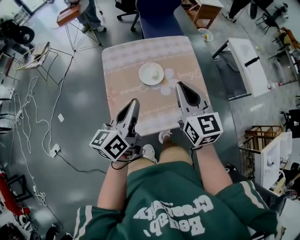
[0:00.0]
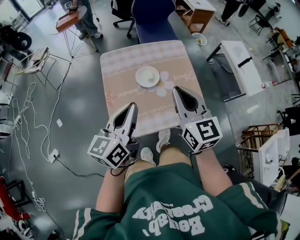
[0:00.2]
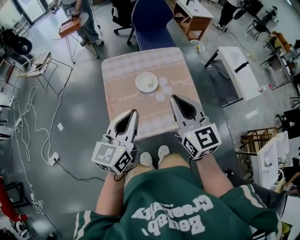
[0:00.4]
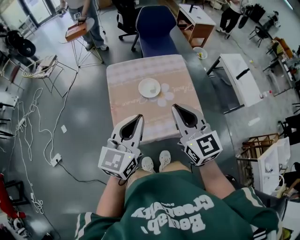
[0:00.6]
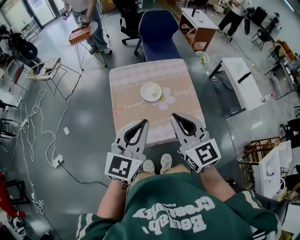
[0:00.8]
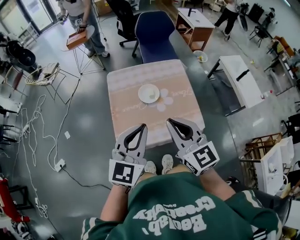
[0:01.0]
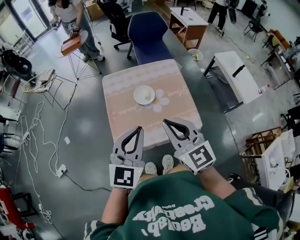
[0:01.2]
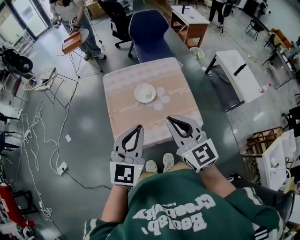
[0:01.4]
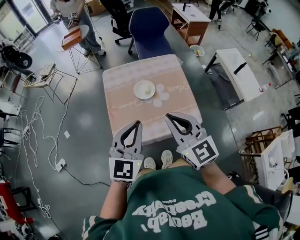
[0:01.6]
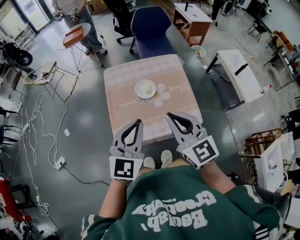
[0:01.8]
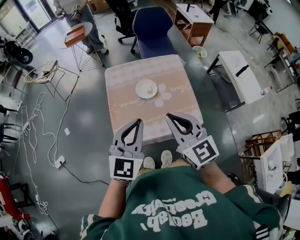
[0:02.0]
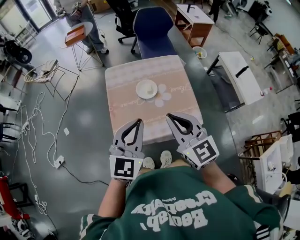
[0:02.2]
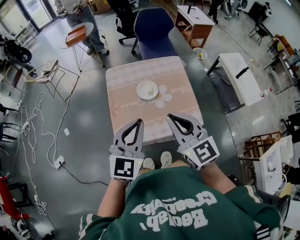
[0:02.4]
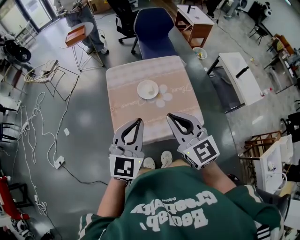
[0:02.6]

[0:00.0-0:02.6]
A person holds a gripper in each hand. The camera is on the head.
0:00.0 to 0:01.2: The right gripper changes place by about 15 cm.

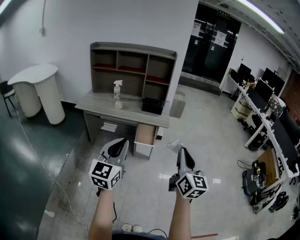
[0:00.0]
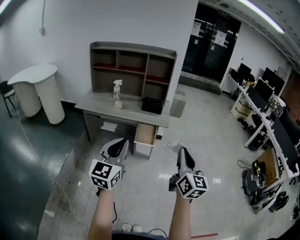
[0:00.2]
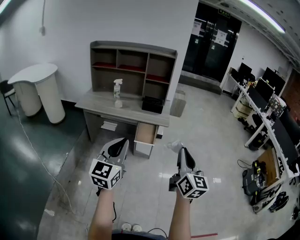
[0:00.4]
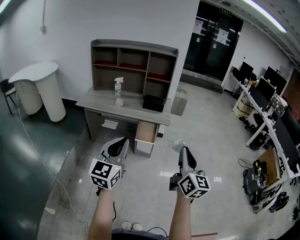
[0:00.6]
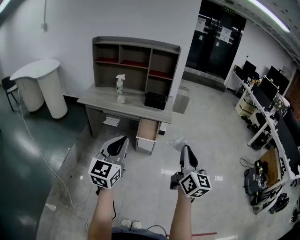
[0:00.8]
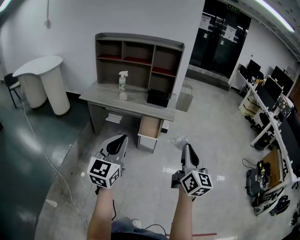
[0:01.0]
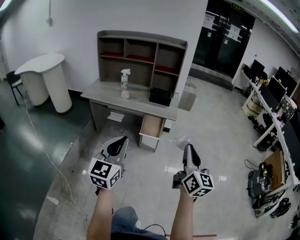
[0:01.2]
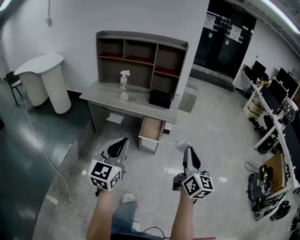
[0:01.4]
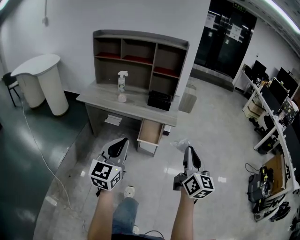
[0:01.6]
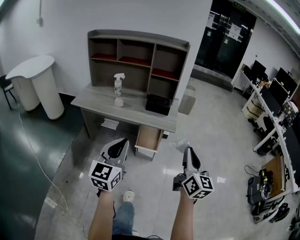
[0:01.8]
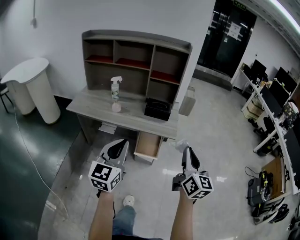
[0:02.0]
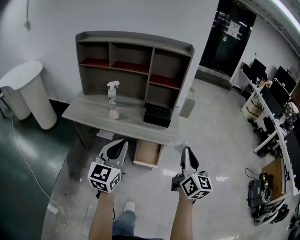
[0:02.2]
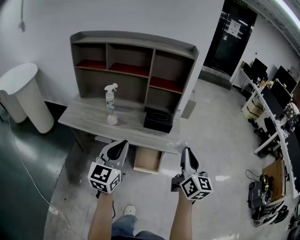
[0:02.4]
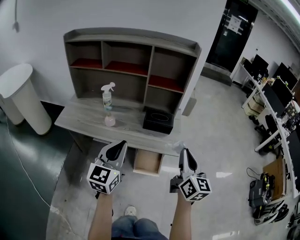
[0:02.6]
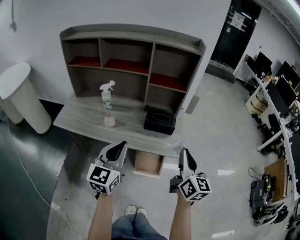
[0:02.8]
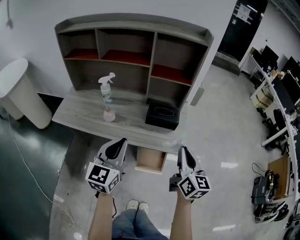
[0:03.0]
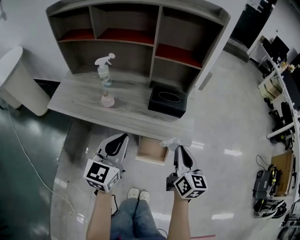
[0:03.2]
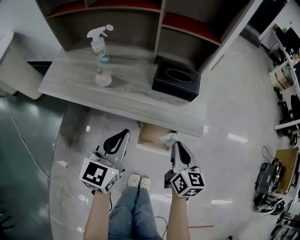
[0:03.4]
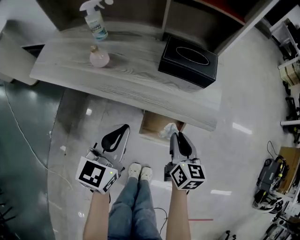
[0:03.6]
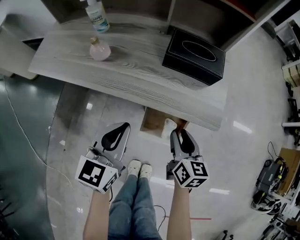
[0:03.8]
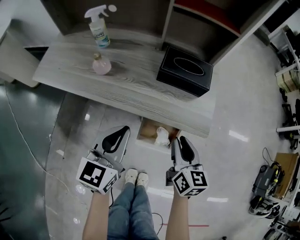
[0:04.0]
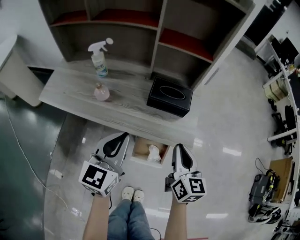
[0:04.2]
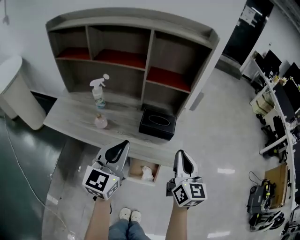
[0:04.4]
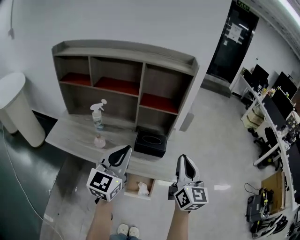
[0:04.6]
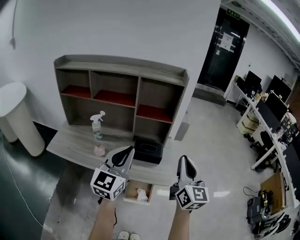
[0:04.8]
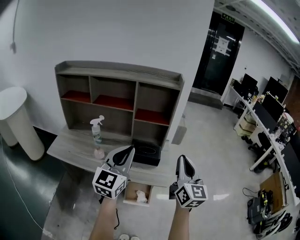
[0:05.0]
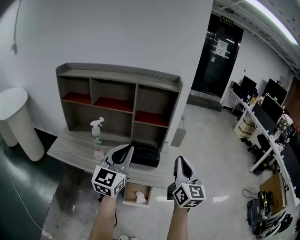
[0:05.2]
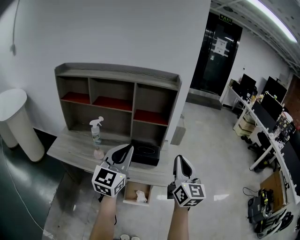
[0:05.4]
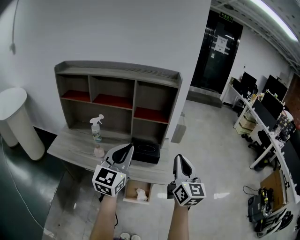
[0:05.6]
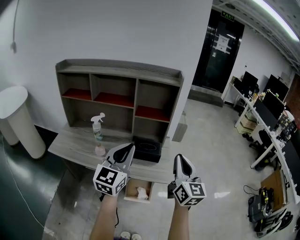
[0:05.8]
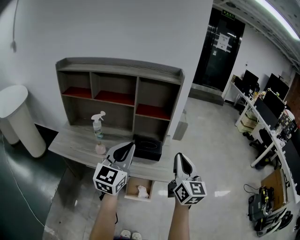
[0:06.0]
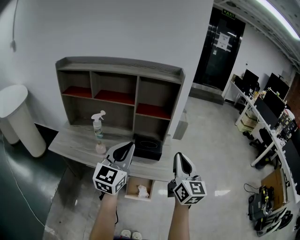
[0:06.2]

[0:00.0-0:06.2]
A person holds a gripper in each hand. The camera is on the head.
0:00.0 to 0:01.6: The left gripper is displaced forward and downward by some 10 cm, while the right gripper is displaced forward by approximately 10 cm.
0:01.6 to 0:03.2: The left gripper heads forward, covering some 40 cm; the right gripper travels forward and downward by approximately 40 cm, and turns by approximately 20 degrees.
0:03.2 to 0:04.6: Both grippers travel together upward, some 15 cm. The right gripper turns by some 20 degrees, and opens, then closes again.
0:04.6 to 0:06.2: The right gripper changes place by approximately 5 cm. The left gripper moves some 5 cm.

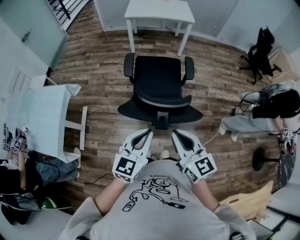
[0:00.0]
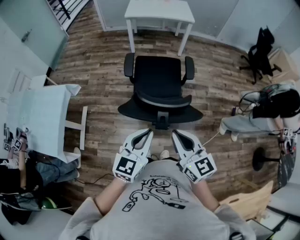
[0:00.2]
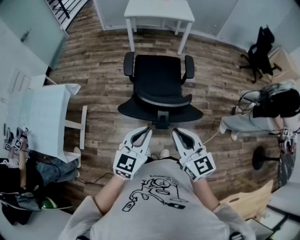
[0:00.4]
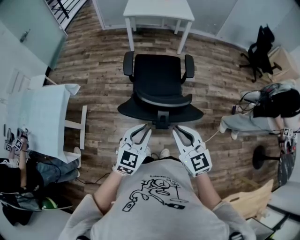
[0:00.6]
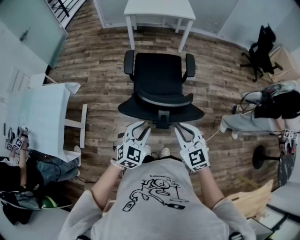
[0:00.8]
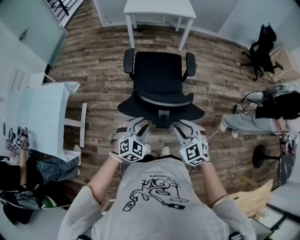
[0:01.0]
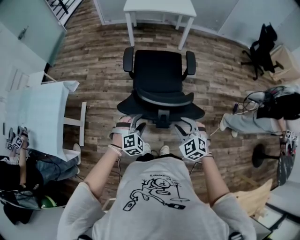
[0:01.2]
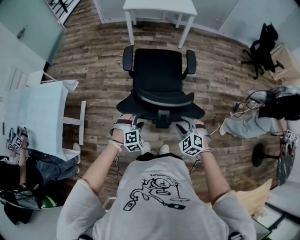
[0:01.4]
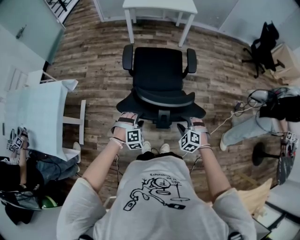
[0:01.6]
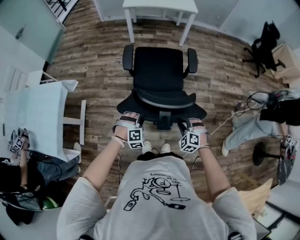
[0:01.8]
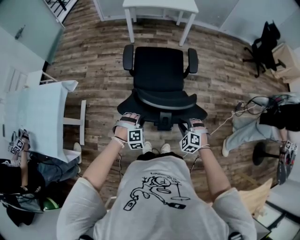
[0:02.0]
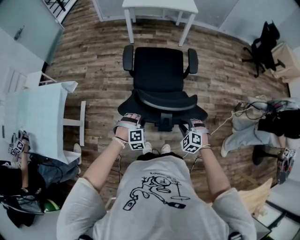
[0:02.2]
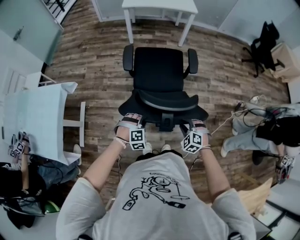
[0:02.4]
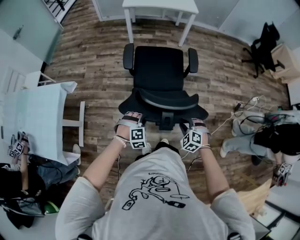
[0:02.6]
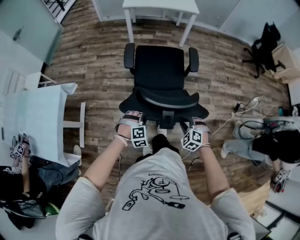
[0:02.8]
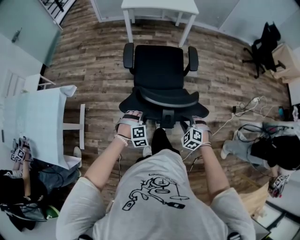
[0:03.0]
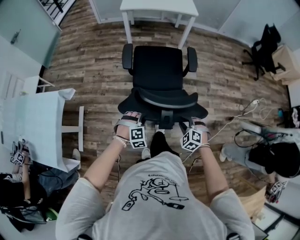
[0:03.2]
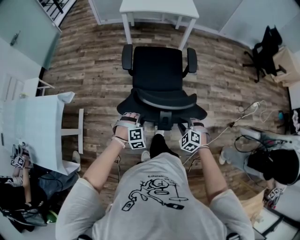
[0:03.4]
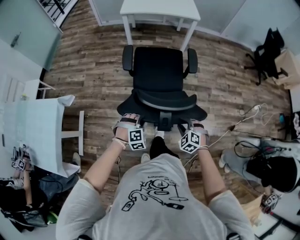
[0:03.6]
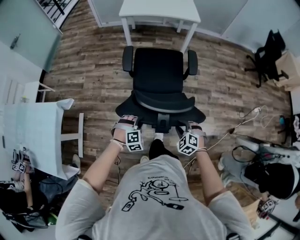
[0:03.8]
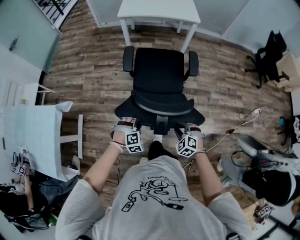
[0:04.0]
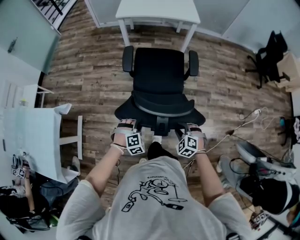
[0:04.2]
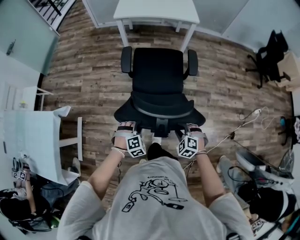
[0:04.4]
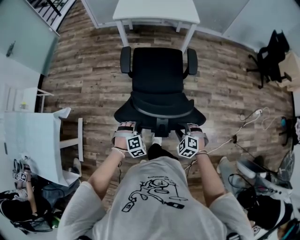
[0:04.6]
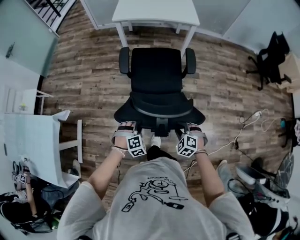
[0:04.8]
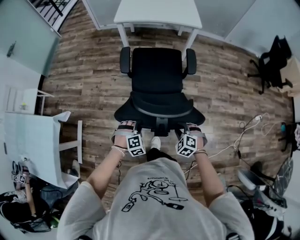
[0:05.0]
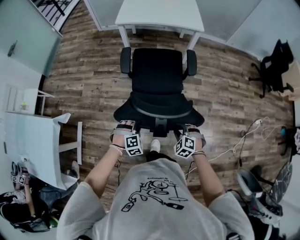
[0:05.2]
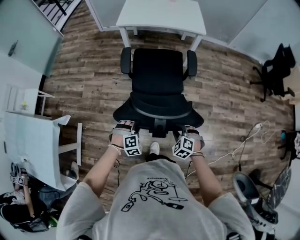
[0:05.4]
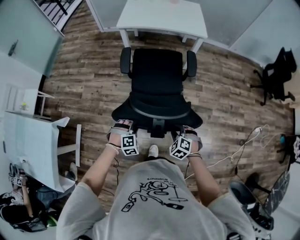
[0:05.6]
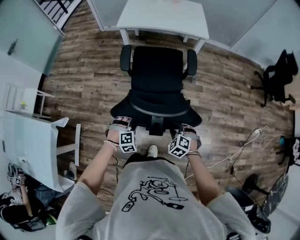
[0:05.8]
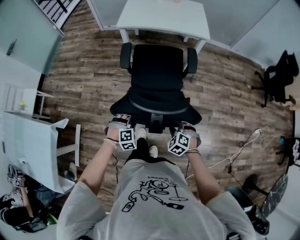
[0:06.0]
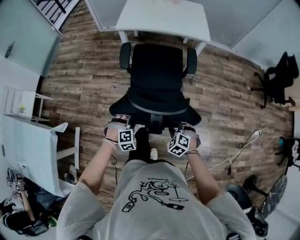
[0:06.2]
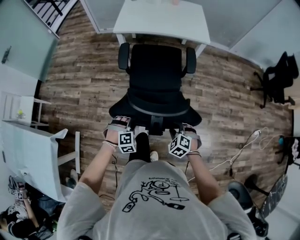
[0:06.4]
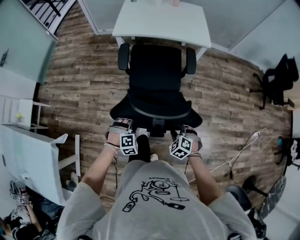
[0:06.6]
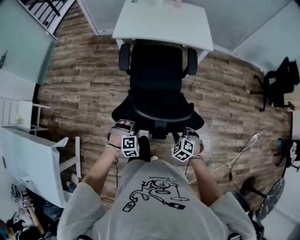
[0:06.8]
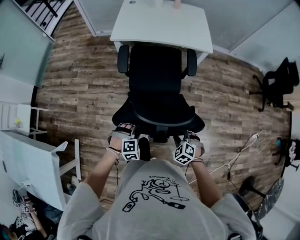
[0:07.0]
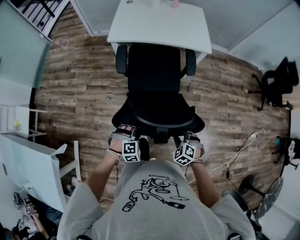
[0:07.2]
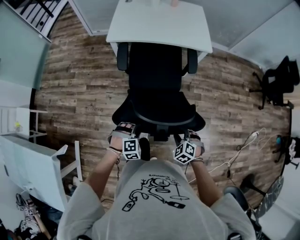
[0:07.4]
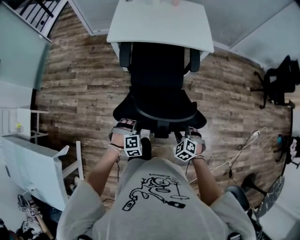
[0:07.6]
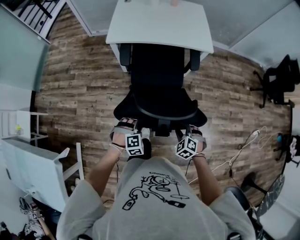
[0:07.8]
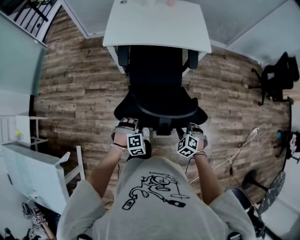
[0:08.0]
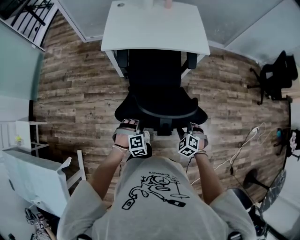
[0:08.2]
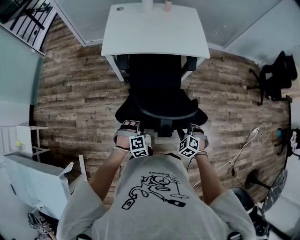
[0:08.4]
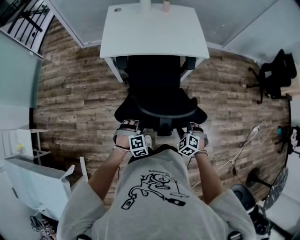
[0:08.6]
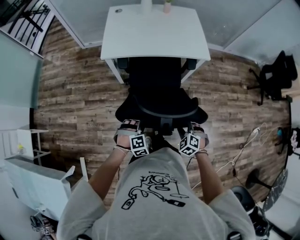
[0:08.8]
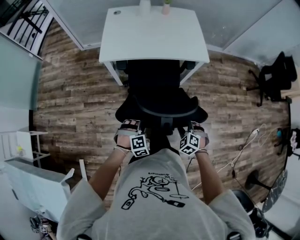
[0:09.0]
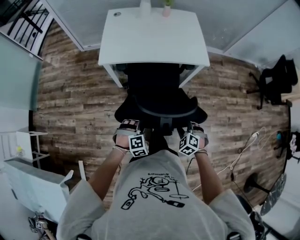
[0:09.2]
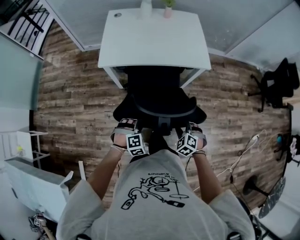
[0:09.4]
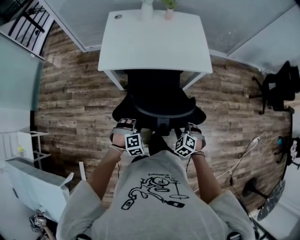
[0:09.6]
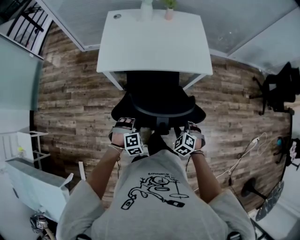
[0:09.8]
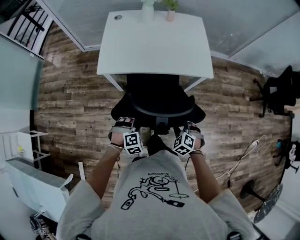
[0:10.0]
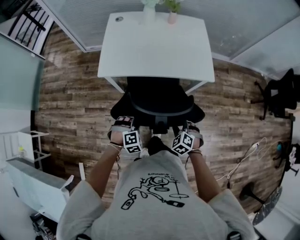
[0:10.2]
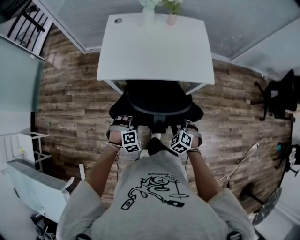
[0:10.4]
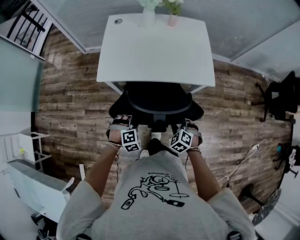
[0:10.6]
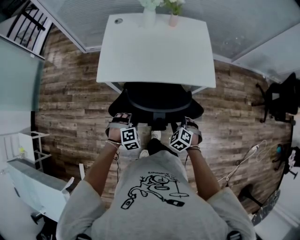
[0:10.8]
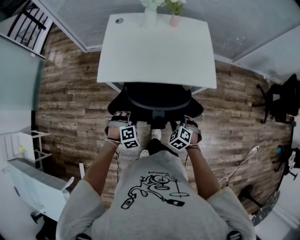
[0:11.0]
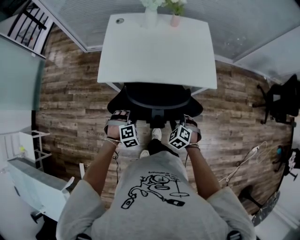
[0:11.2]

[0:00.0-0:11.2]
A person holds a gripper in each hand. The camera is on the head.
0:00.0 to 0:01.6: The two grippers go some 30 cm downward. The right gripper tips its fingers downward by some 40 degrees, and opens up. The left gripper rotates around the line of its fingers by roughly 60 degrees, clockwise from behind, and opens its fingers.
0:01.6 to 0:03.2: The two grippers go roughly 10 cm forward. The left gripper closes up.
0:03.2 to 0:04.8: Both grippers travel together forward, about 15 cm.
0:04.8 to 0:06.4: Both grippers travel together forward, about 20 cm.
0:06.4 to 0:08.0: Both grippers move forward, roughly 15 cm.
0:08.0 to 0:09.6: Both grippers travel together forward, roughly 15 cm.
0:09.6 to 0:11.2: The two grippers go some 15 cm forward.

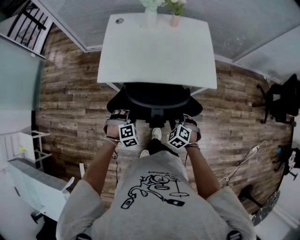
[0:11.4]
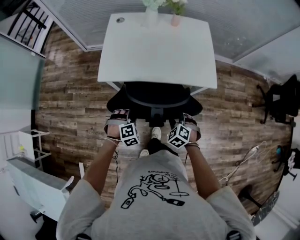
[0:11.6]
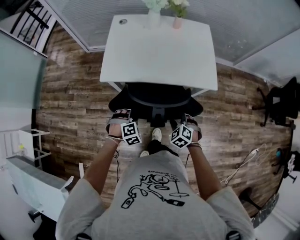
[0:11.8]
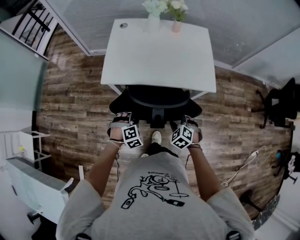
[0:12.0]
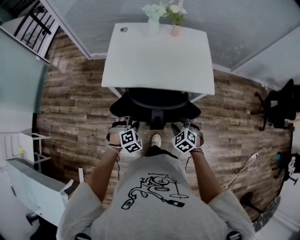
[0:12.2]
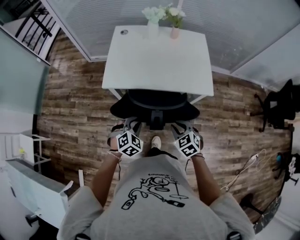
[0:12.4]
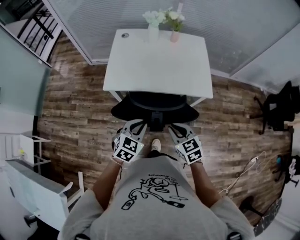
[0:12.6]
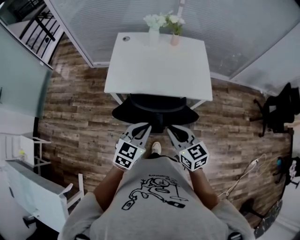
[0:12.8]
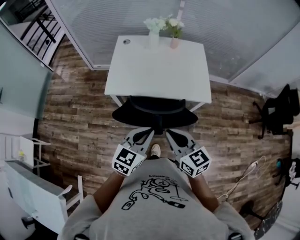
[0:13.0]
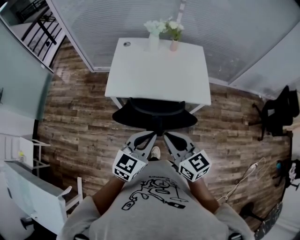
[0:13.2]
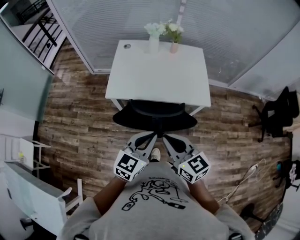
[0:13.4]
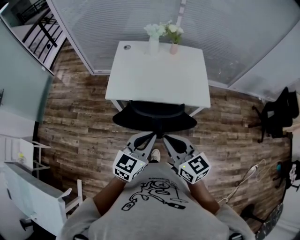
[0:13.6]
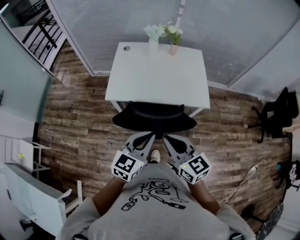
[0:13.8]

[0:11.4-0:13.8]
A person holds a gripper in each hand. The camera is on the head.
0:11.4 to 0:12.6: The grippers both shift upward by about 15 cm. The right gripper rotates approximately 40 degrees, and closes; the left gripper rotates around the line of its fingers by some 40 degrees, counterclockwise from behind, and closes.
0:12.6 to 0:13.8: Both grippers travel together upward, roughly 15 cm. The right gripper changes its angle by roughly 20 degrees. Meanwhile the left gripper swivels about 20 degrees.

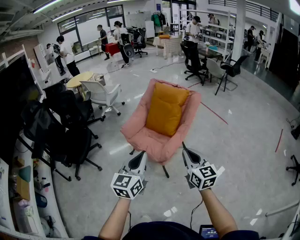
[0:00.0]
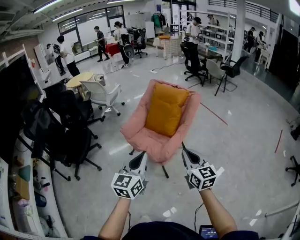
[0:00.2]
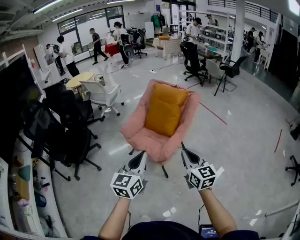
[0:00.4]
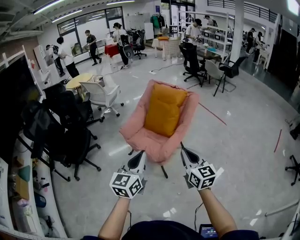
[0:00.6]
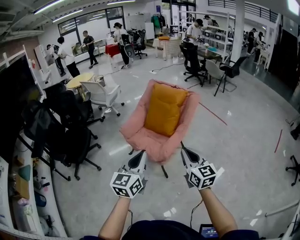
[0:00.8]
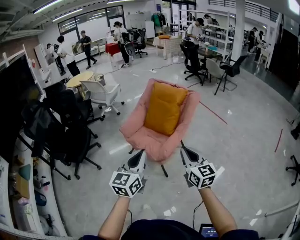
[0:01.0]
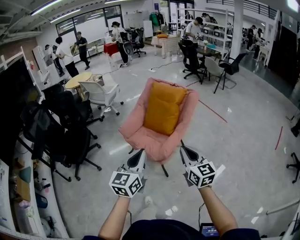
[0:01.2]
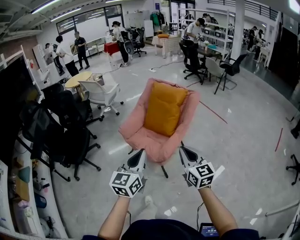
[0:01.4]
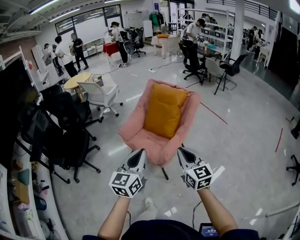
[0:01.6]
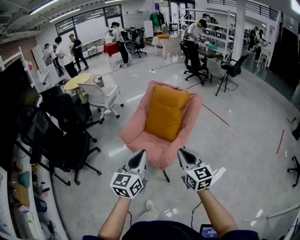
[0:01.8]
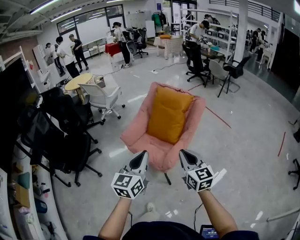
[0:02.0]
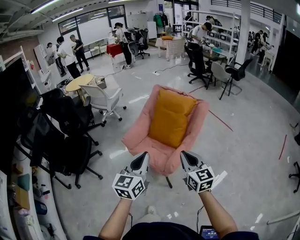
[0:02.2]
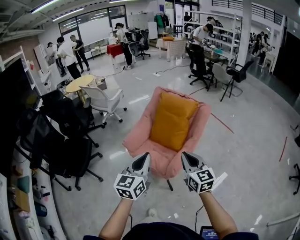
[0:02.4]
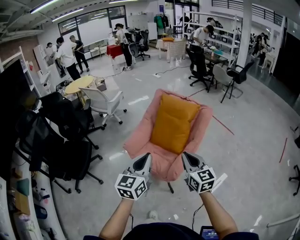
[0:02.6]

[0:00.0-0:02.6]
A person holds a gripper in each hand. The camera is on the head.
0:00.0 to 0:01.2: The grippers stay close to where they were, moving slightly.
0:01.2 to 0:02.6: The grippers both shift forward by some 20 cm.
